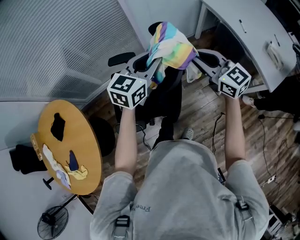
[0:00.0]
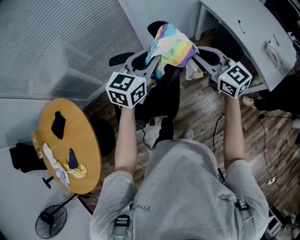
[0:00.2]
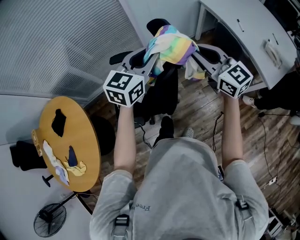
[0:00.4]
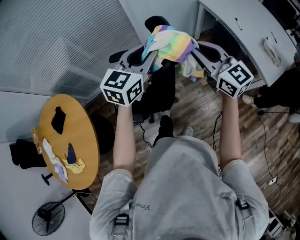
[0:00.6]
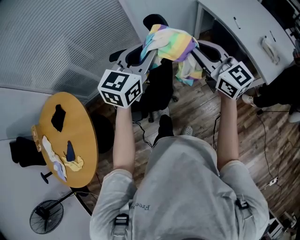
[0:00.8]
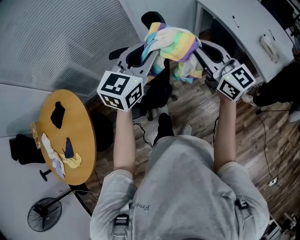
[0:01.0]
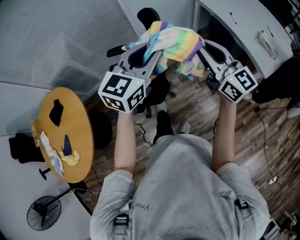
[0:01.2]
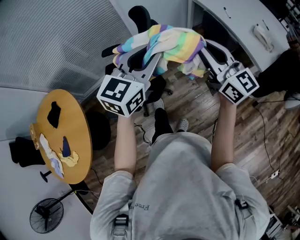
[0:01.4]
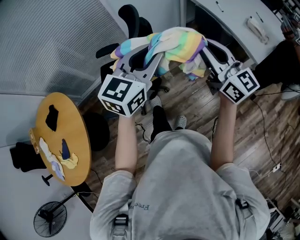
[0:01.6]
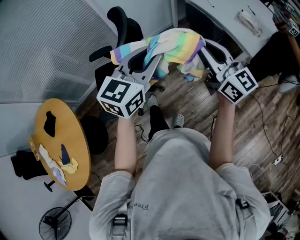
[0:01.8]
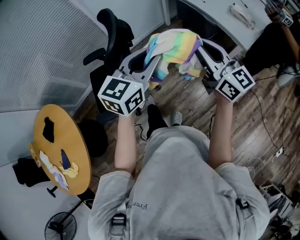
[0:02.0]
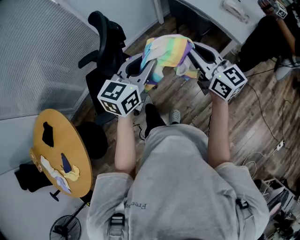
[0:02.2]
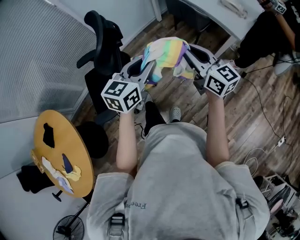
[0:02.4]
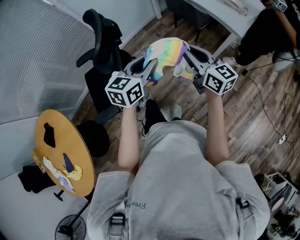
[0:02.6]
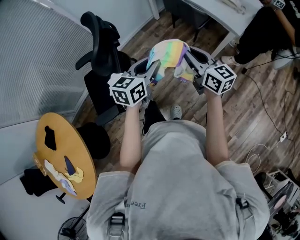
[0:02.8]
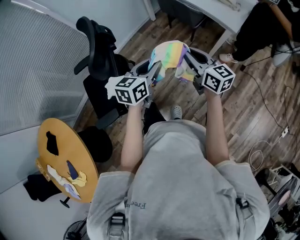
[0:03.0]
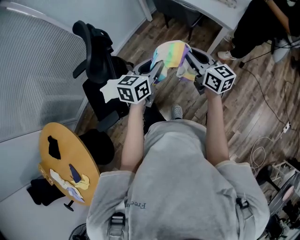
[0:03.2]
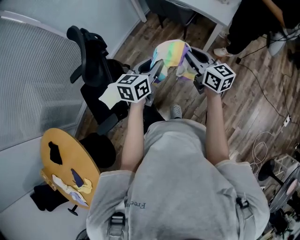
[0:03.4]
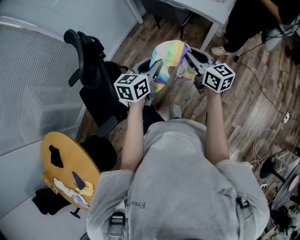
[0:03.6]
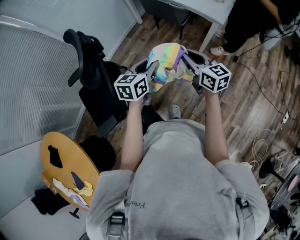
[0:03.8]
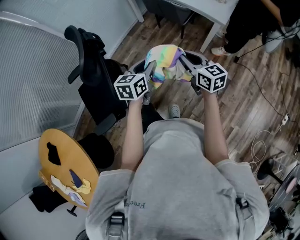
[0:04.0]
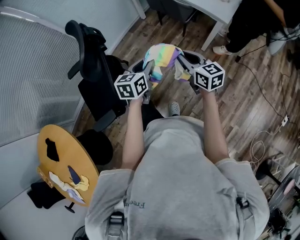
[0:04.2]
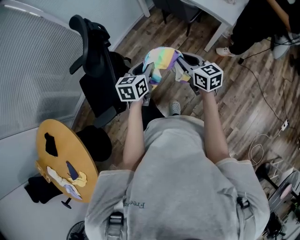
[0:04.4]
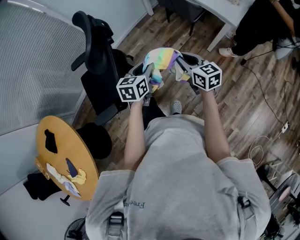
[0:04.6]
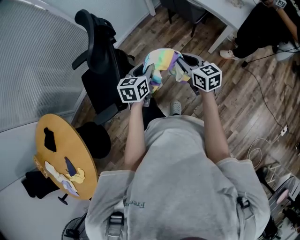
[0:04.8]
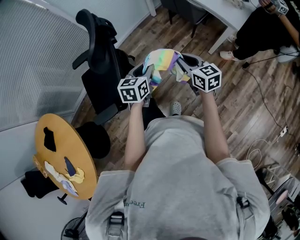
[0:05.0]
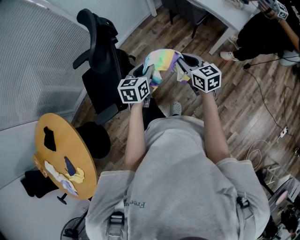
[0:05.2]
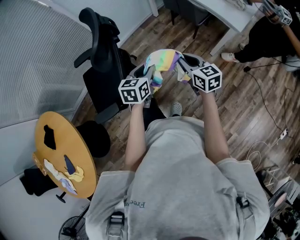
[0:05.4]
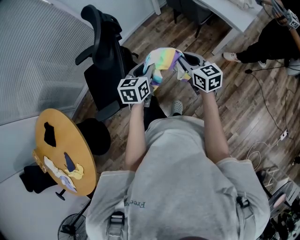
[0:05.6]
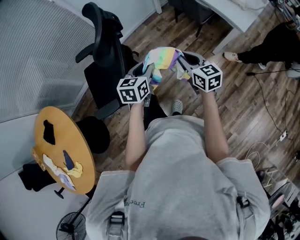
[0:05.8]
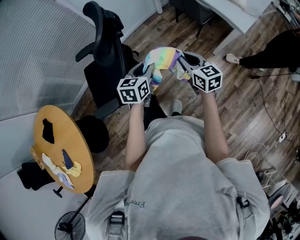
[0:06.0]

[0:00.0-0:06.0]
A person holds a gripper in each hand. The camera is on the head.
0:00.0 to 0:01.6: The left gripper is displaced backward and to the right by approximately 20 cm; the right gripper moves backward, to the right and upward, about 20 cm, and swivels some 20 degrees.
0:01.6 to 0:03.0: The grippers both shift downward and to the right by roughly 20 cm. The right gripper changes its angle by approximately 30 degrees. The left gripper rotates about 30 degrees.
0:03.0 to 0:04.4: Both grippers move downward, roughly 5 cm.
0:04.4 to 0:06.0: The left gripper is displaced to the left by about 5 cm.

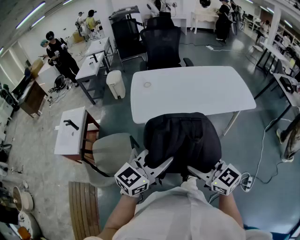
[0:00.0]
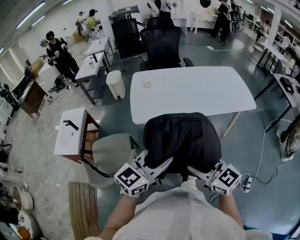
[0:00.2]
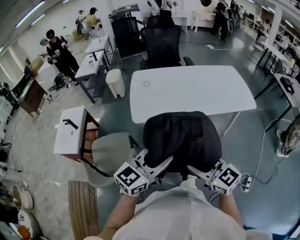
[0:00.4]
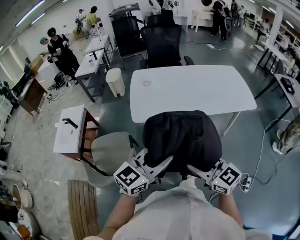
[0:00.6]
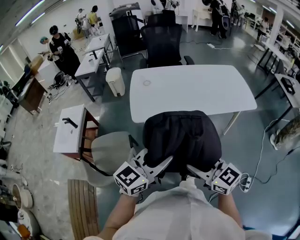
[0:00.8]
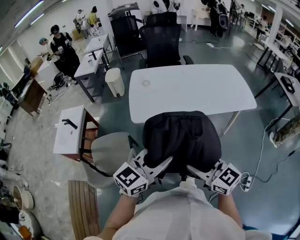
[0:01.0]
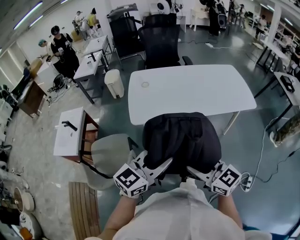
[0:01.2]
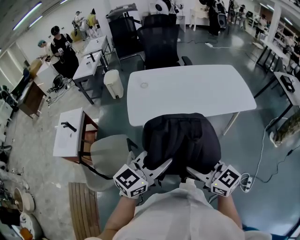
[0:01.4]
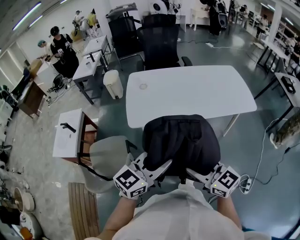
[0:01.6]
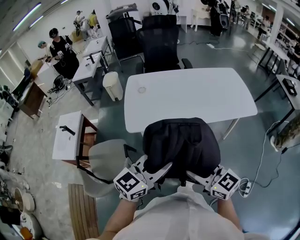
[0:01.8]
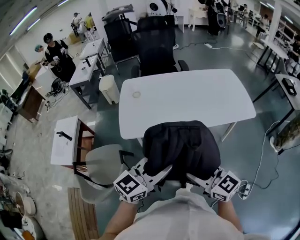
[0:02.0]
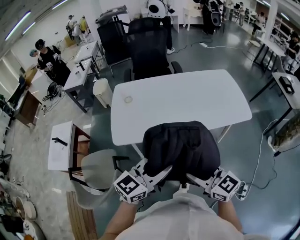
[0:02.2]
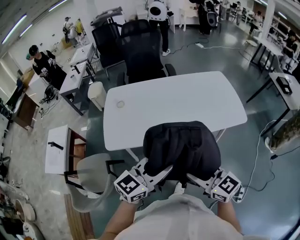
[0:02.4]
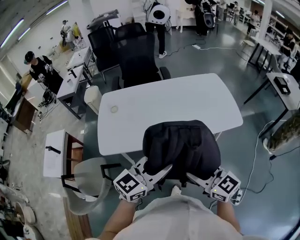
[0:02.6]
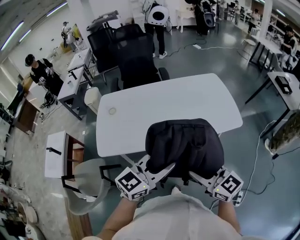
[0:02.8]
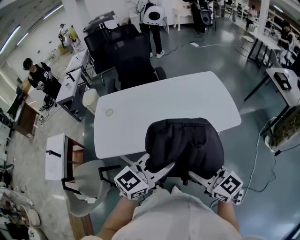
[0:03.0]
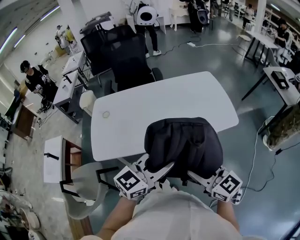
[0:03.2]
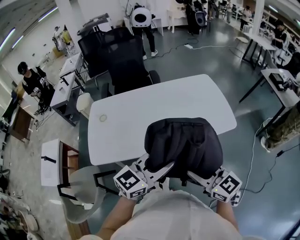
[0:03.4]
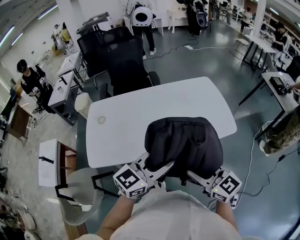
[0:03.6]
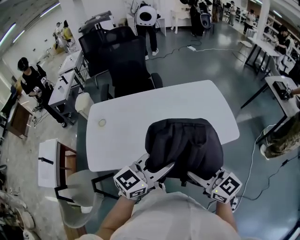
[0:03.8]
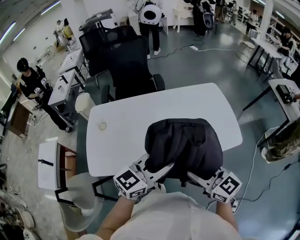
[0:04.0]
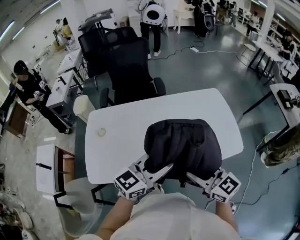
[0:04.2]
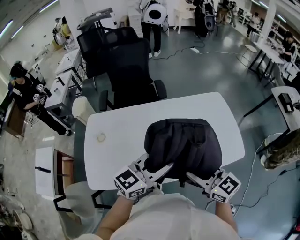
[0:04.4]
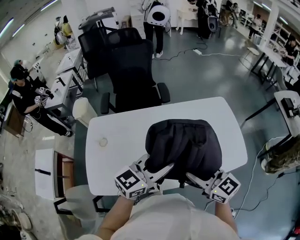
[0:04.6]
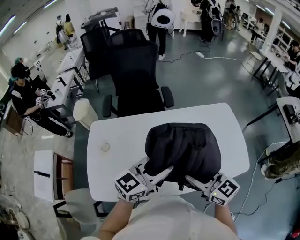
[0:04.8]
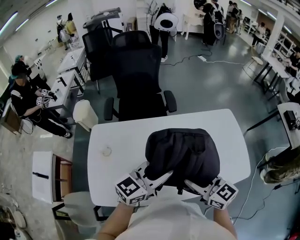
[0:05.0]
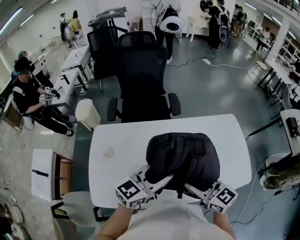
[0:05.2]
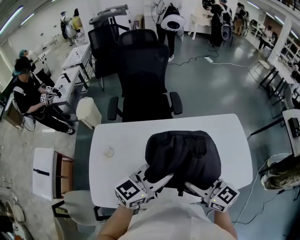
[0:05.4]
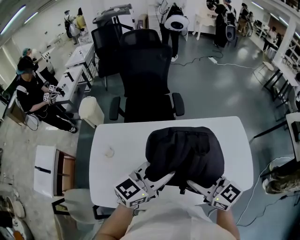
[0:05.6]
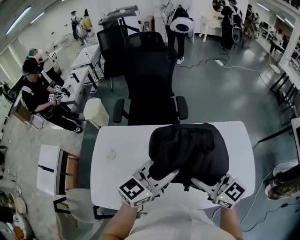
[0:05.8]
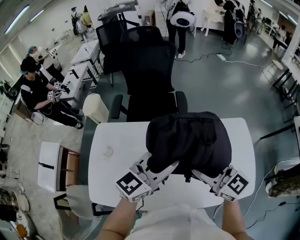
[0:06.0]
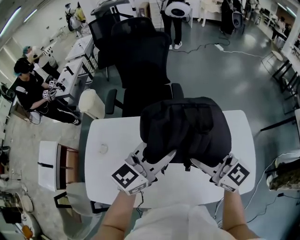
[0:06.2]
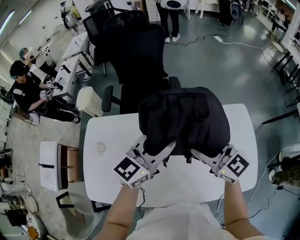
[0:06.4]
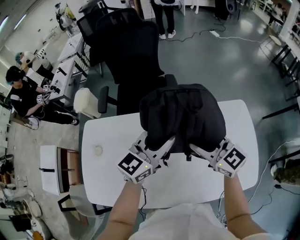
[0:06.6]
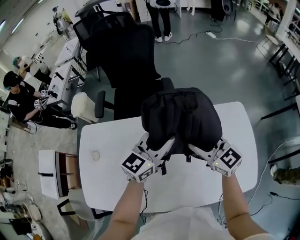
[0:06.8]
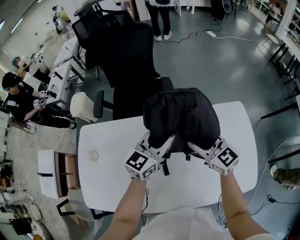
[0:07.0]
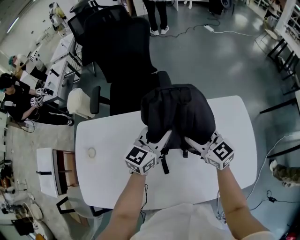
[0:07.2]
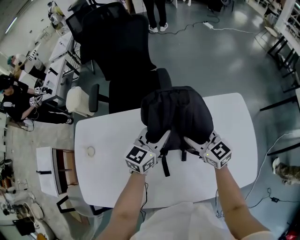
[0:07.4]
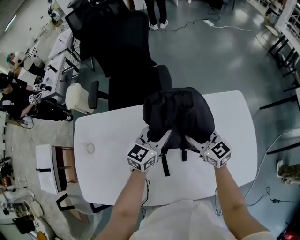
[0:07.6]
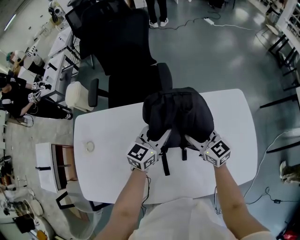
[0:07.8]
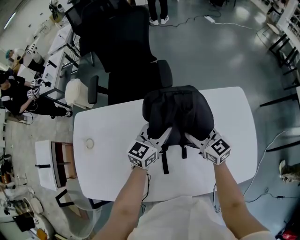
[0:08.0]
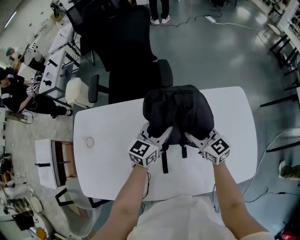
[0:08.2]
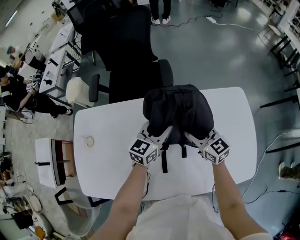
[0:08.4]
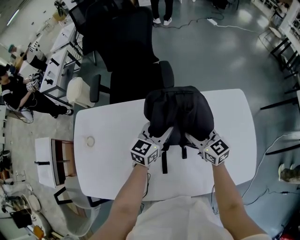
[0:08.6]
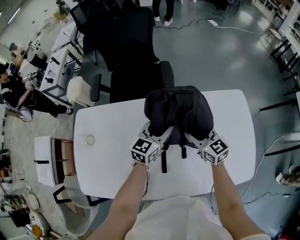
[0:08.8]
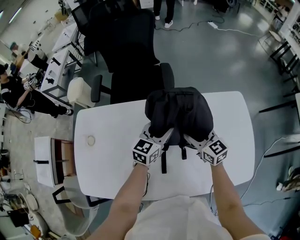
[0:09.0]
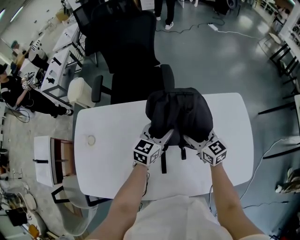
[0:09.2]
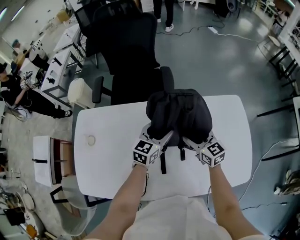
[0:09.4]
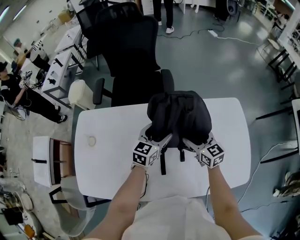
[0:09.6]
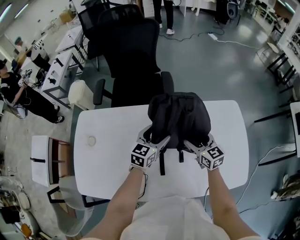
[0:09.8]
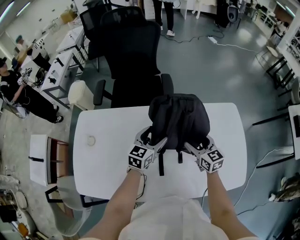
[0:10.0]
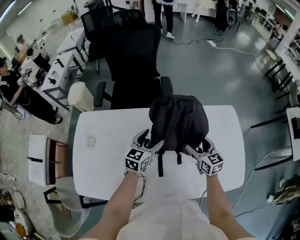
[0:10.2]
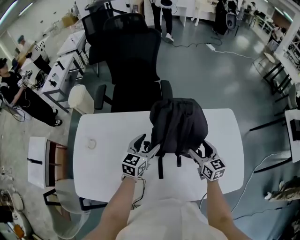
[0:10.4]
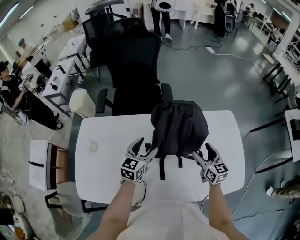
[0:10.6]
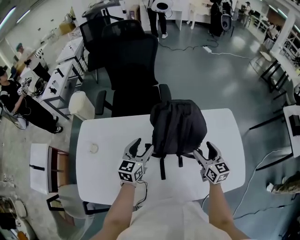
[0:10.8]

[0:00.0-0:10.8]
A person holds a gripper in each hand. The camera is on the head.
0:00.0 to 0:01.6: The left gripper changes place by about 5 cm. Meanwhile the right gripper changes place by approximately 5 cm.
0:01.6 to 0:03.0: The grippers both shift to the right and forward by approximately 30 cm.
0:03.0 to 0:04.6: The two grippers go roughly 25 cm forward.
0:04.6 to 0:06.2: Both grippers travel together forward, some 20 cm.
0:06.2 to 0:07.8: The left gripper moves downward and forward, about 20 cm. The right gripper shifts about 20 cm downward.
0:07.8 to 0:09.2: There are only small adjustments of the grippers.
0:09.2 to 0:10.8: The left gripper goes about 10 cm to the left and backward. Meanwhile the right gripper moves to the right and backward, roughly 10 cm.

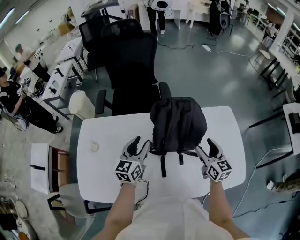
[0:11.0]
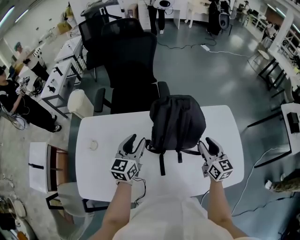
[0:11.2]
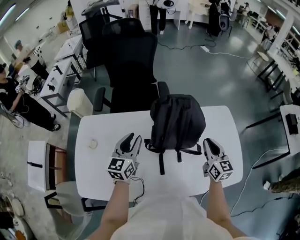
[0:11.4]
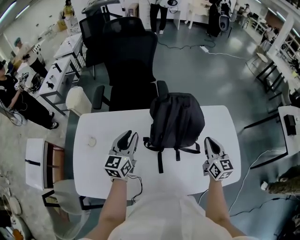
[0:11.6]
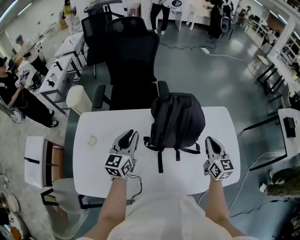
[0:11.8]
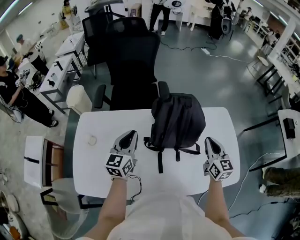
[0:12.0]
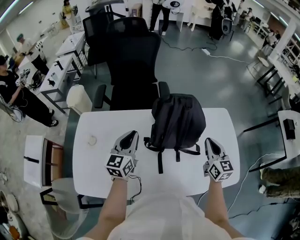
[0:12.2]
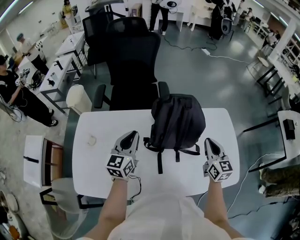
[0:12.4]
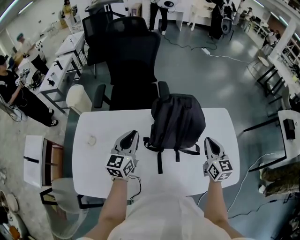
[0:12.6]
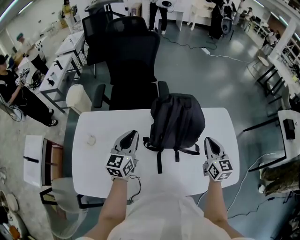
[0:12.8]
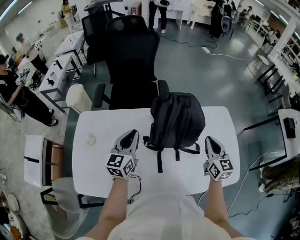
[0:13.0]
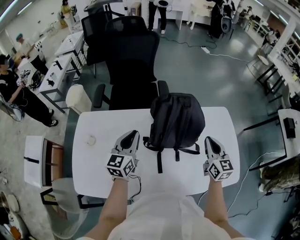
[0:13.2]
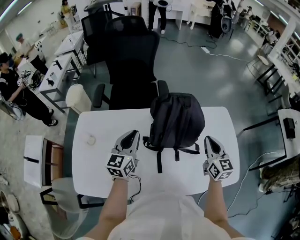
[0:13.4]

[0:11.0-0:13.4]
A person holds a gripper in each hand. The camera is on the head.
0:11.0 to 0:12.2: The left gripper moves approximately 5 cm, and closes up, while the right gripper closes up.
0:12.2 to 0:13.4: Both grippers stay about where they are.

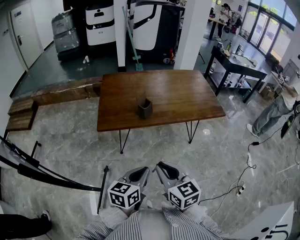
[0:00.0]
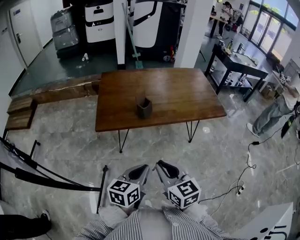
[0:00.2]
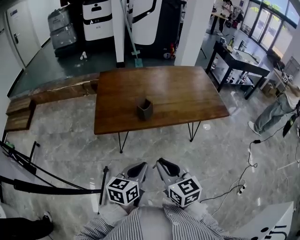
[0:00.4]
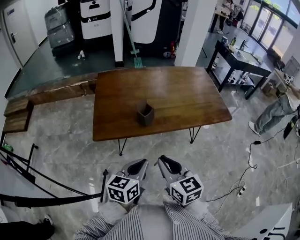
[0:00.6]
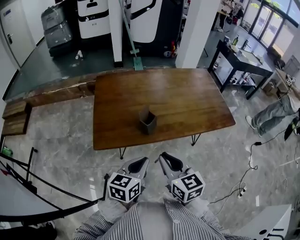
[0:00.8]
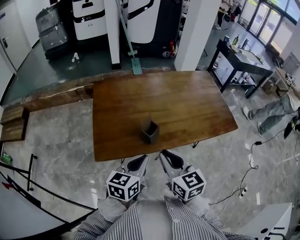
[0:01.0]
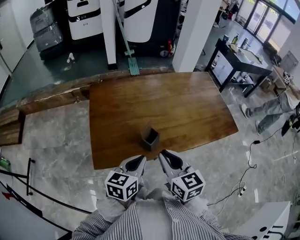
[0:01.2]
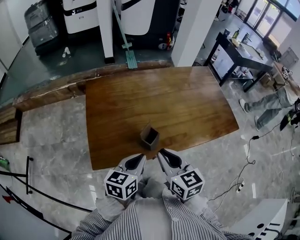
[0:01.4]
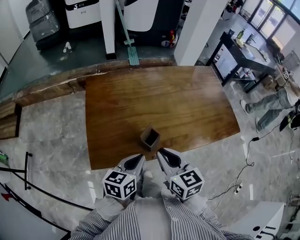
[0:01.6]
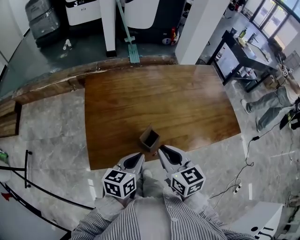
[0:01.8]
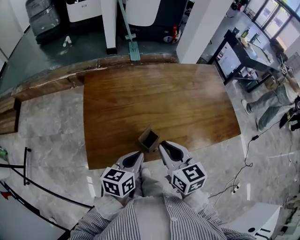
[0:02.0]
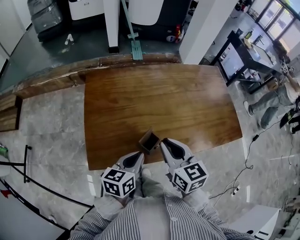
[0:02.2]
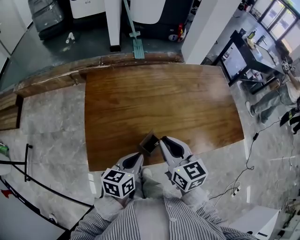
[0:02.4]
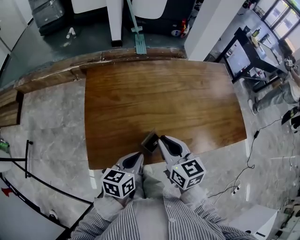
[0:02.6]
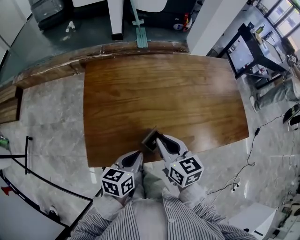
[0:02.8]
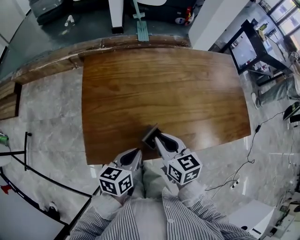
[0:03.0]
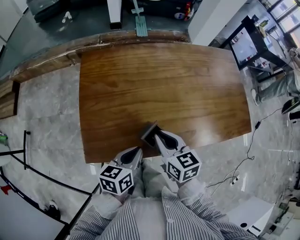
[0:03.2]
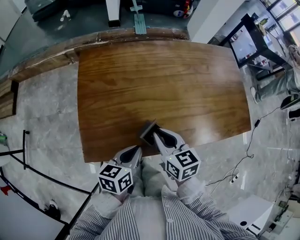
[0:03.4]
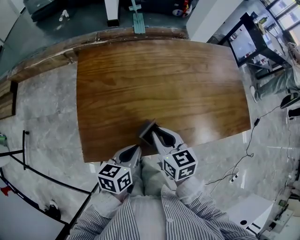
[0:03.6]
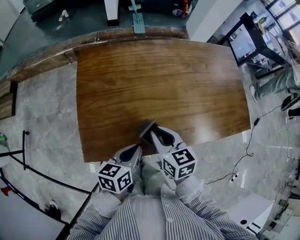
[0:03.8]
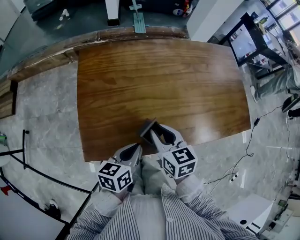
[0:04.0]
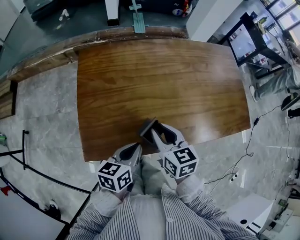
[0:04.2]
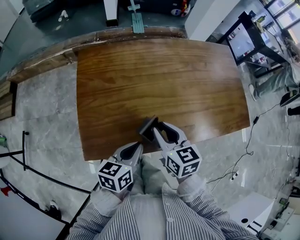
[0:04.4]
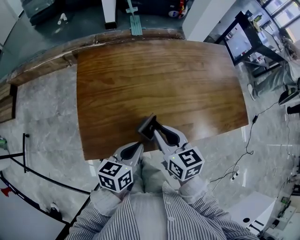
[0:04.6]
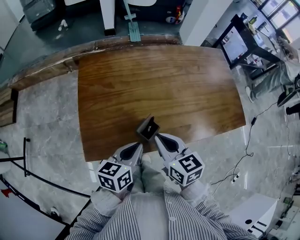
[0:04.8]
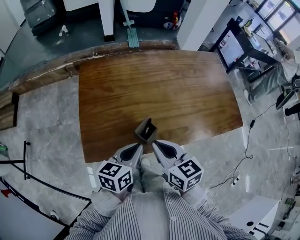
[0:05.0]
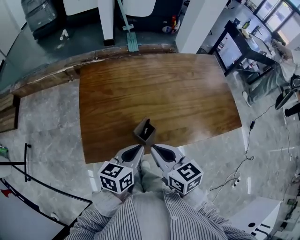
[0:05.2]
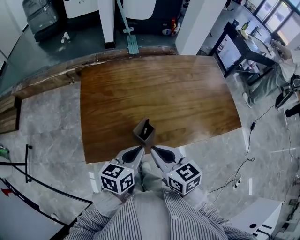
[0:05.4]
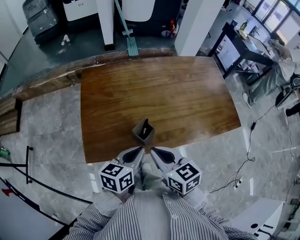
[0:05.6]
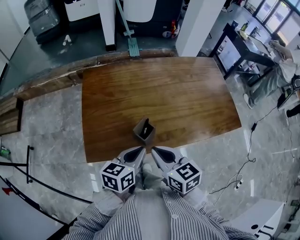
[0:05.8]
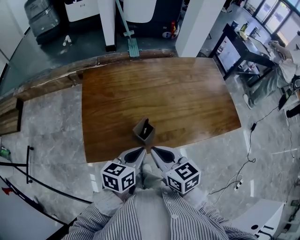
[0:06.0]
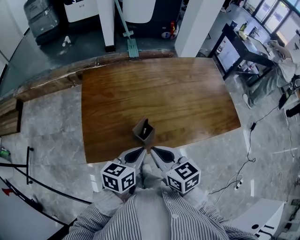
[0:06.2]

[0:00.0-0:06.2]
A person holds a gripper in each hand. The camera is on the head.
0:00.0 to 0:01.6: The two grippers go approximately 35 cm forward.
0:01.6 to 0:03.2: The left gripper is displaced downward by roughly 5 cm, while the right gripper moves downward and forward, about 10 cm.
0:03.2 to 0:04.6: The grippers stay close to where they were, moving slightly.
0:04.6 to 0:06.2: The left gripper changes place by about 5 cm; the right gripper travels backward by roughly 10 cm.
